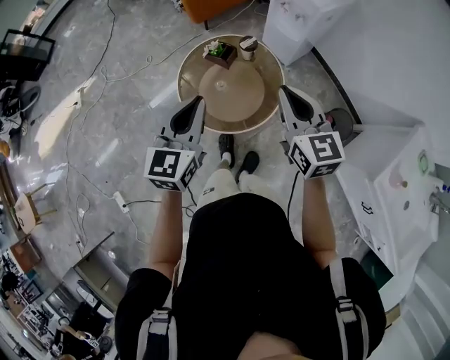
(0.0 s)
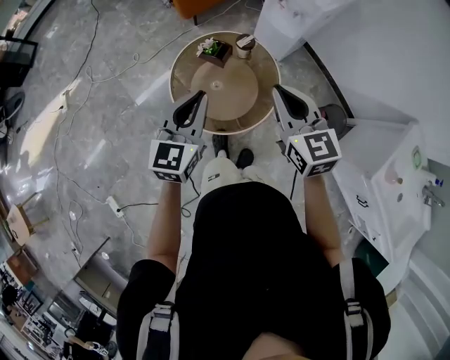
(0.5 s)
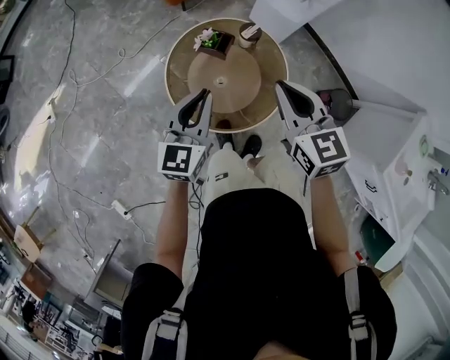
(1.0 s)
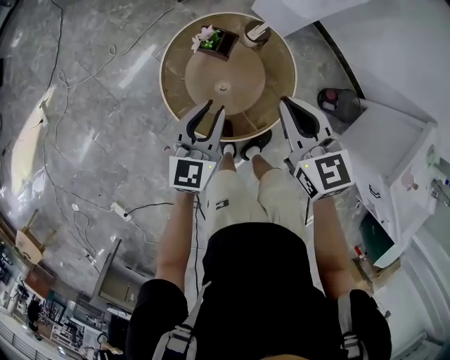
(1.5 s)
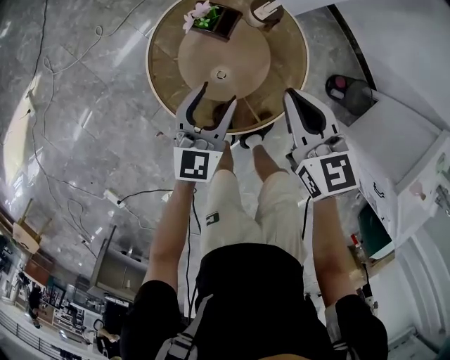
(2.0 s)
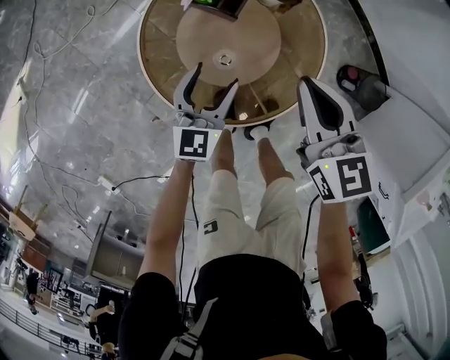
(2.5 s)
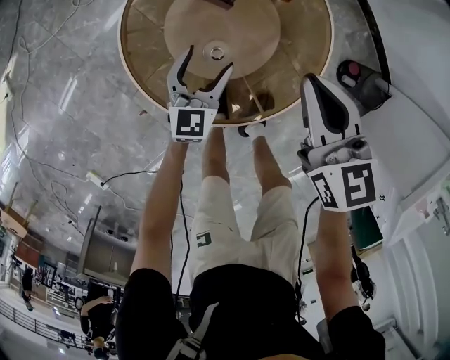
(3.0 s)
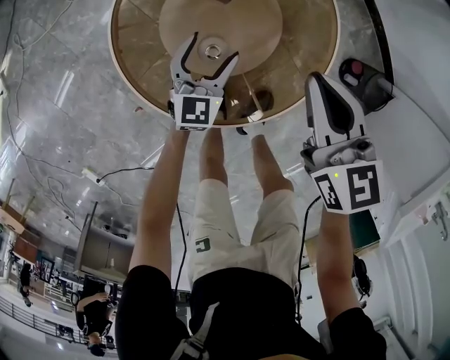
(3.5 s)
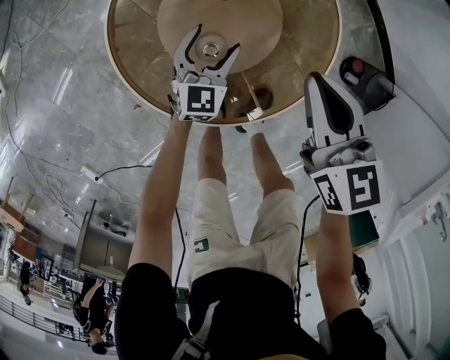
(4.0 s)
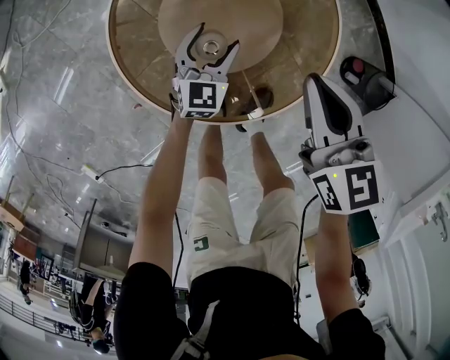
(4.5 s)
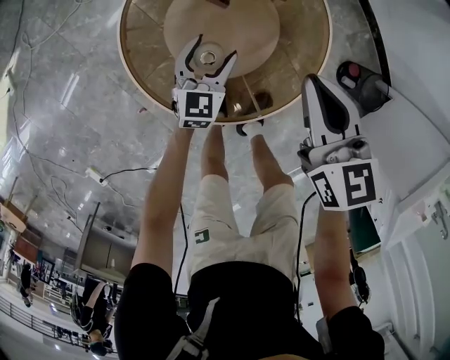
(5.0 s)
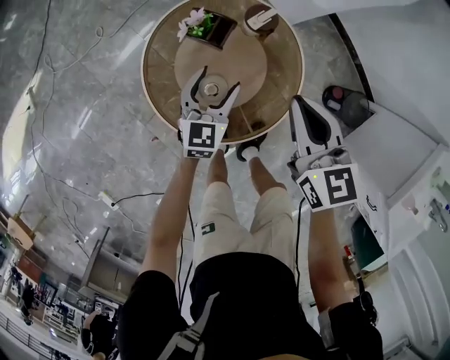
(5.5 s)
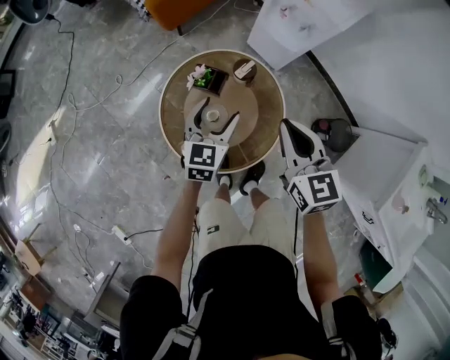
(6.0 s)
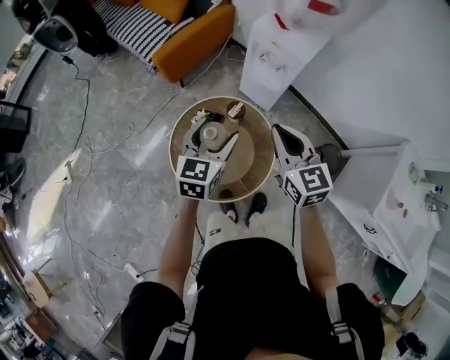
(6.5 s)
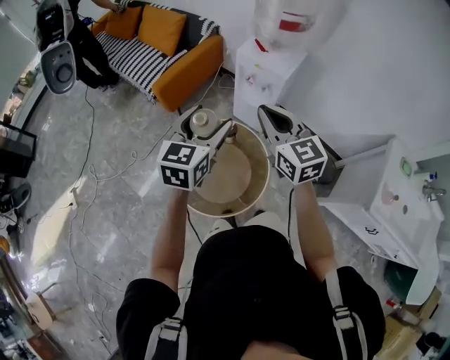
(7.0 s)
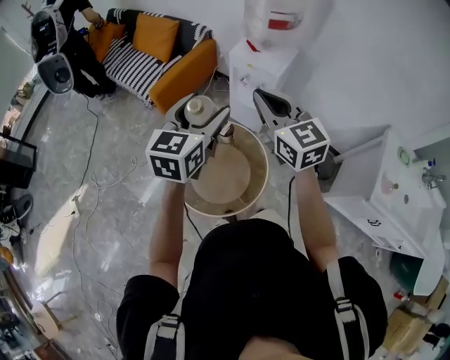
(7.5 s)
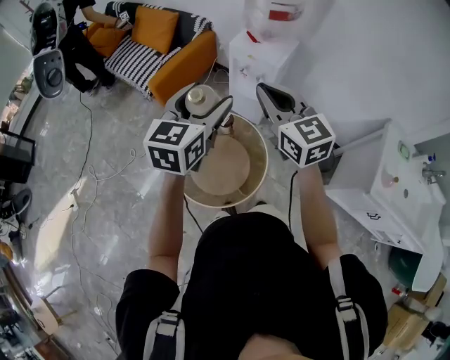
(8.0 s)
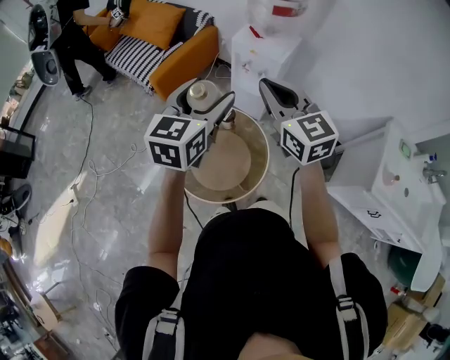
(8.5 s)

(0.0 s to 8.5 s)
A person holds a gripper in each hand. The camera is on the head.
0.0 s - 2.0 s: Both grippers travel together downward and forward, approximately 35 cm. The left gripper opens.
2.0 s - 4.0 s: The right gripper goes about 15 cm downward. The left gripper heads downward, covering roughly 25 cm.
4.0 s - 6.5 s: The two grippers go roughly 50 cm upward. The right gripper turns by roughly 20 degrees.
6.5 s - 8.5 s: The grippers both shift upward by some 20 cm.

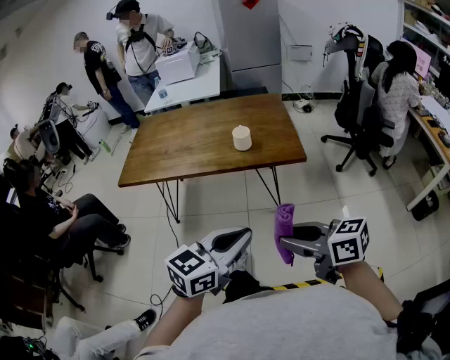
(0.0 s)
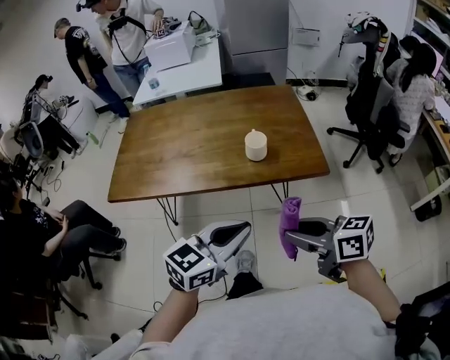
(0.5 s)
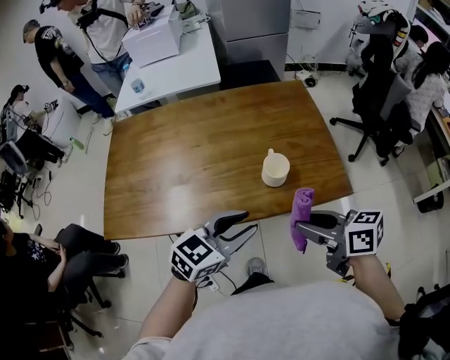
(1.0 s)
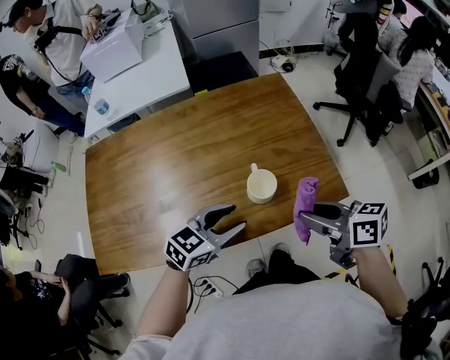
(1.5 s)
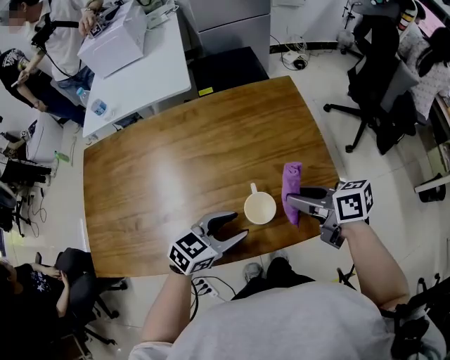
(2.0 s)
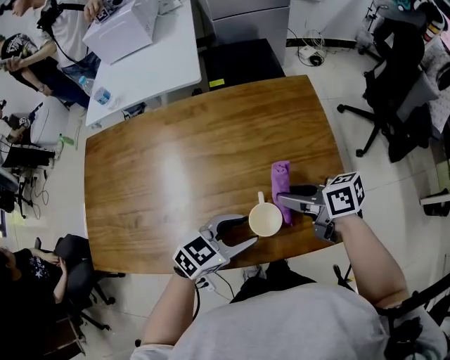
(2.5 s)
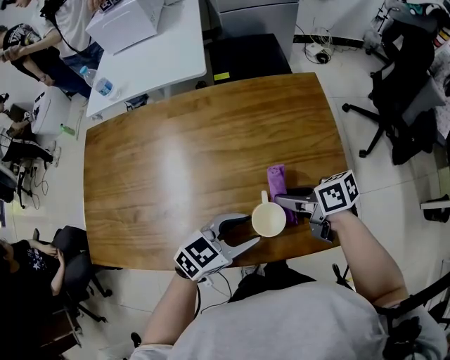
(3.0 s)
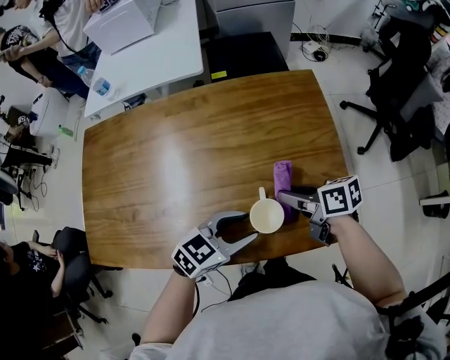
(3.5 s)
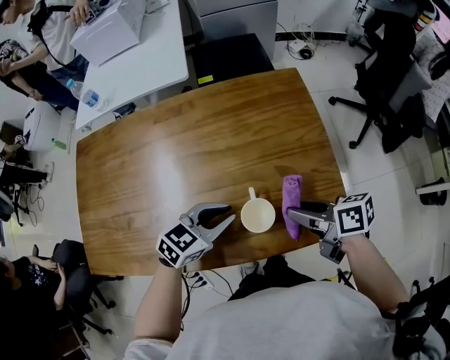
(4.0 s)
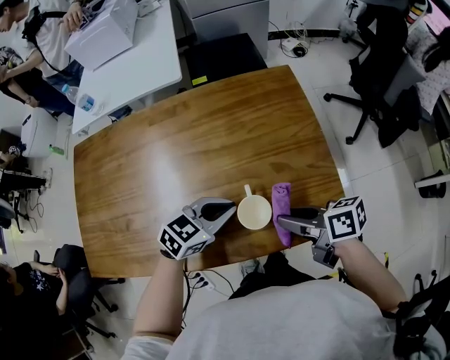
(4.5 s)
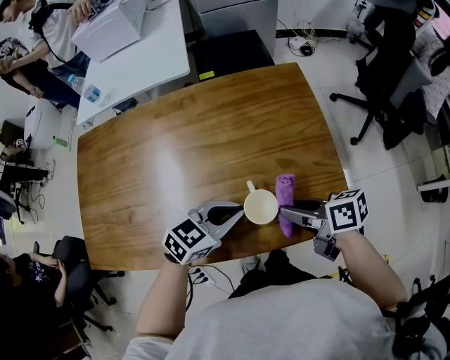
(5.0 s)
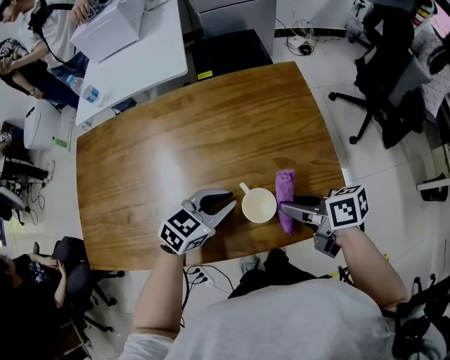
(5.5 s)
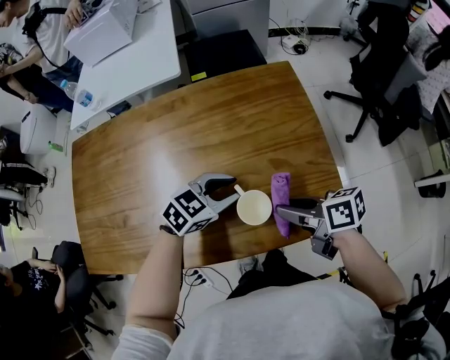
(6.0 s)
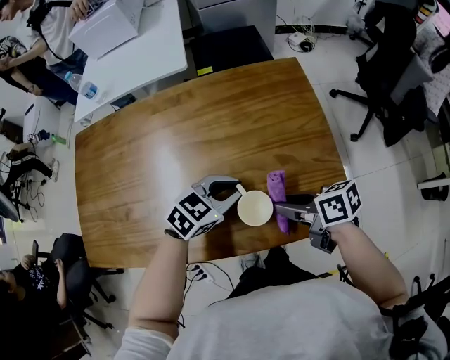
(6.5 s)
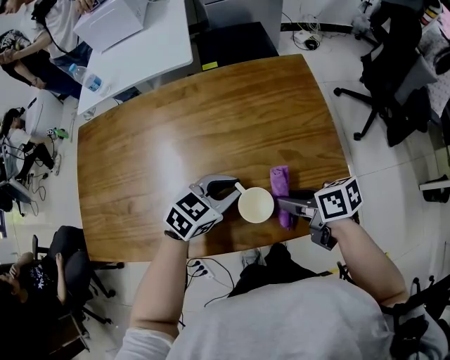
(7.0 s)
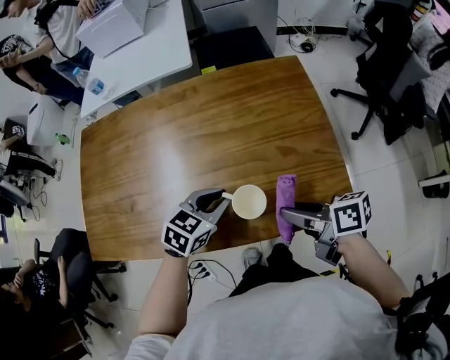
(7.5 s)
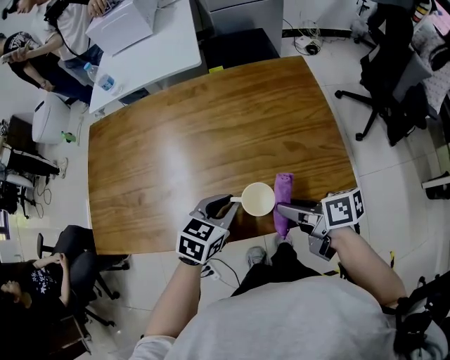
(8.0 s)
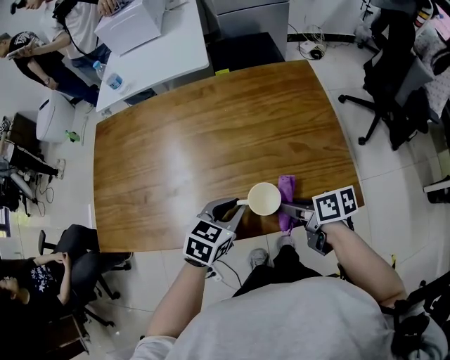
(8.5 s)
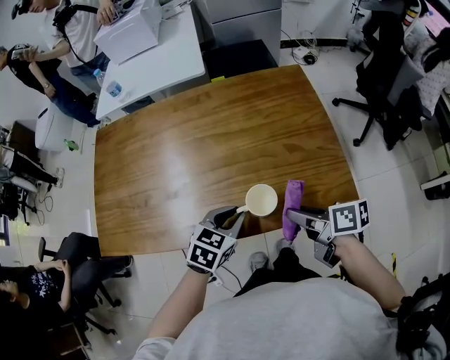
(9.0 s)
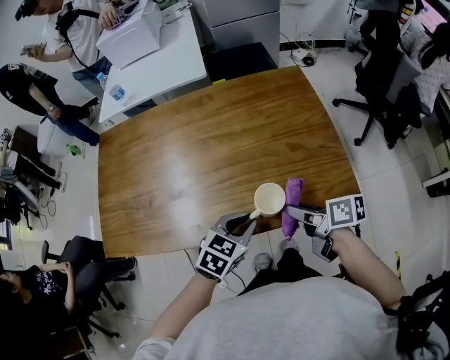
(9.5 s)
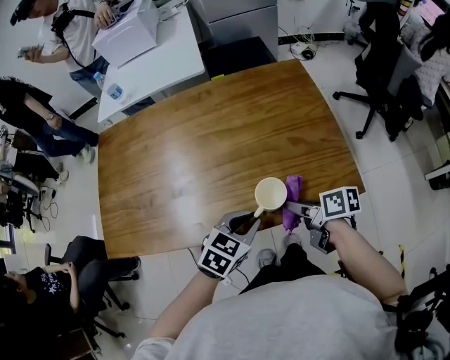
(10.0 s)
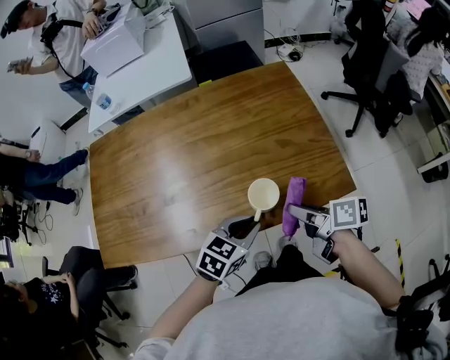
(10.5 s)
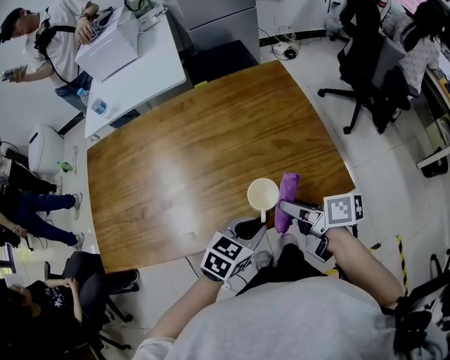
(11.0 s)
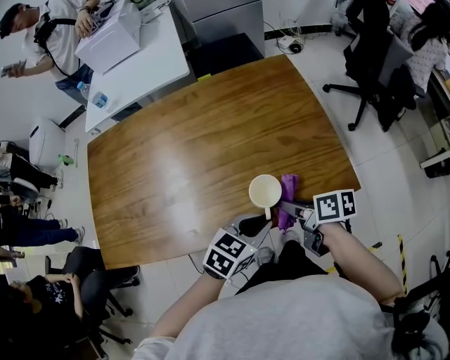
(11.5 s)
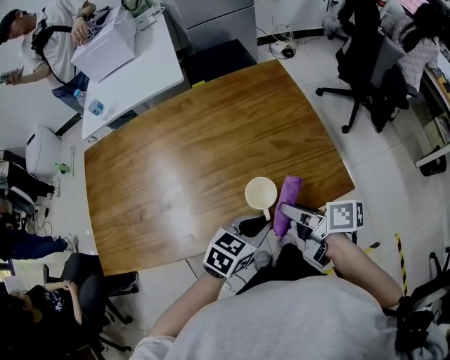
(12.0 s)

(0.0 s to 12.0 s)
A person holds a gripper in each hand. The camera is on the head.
0.0 s - 2.0 s: The pair of grippers is taken about 60 cm. The right gripper changes its angle by about 20 degrees. The left gripper swivels approximately 30 degrees, and opens.
2.0 s - 4.0 s: The left gripper shifts by roughly 5 cm, and closes up.
4.0 s - 6.0 s: The left gripper shifts by some 5 cm.
6.0 s - 8.0 s: The left gripper ends up approximately 10 cm from where it was, and swivels roughly 30 degrees, while the right gripper changes place by some 5 cm.
8.0 s - 10.0 s: The right gripper swings up and down, roughly 5 cm each way, with 2 reversals. The left gripper heads backward, covering some 10 cm.
10.0 s - 12.0 s: The left gripper is displaced to the right by about 5 cm. Meanwhile the right gripper goes up and down, roughly 5 cm each way, reversing 2 times.

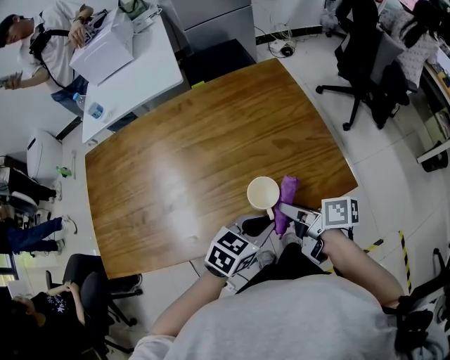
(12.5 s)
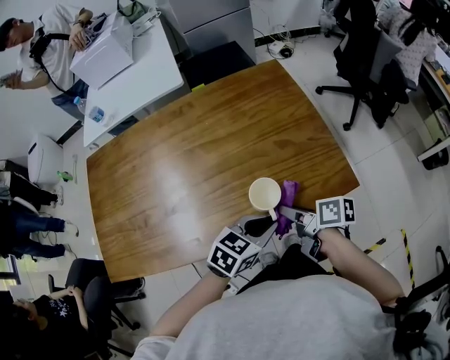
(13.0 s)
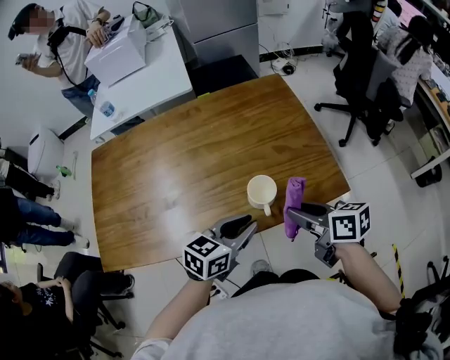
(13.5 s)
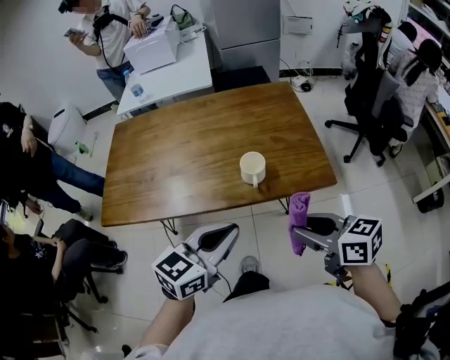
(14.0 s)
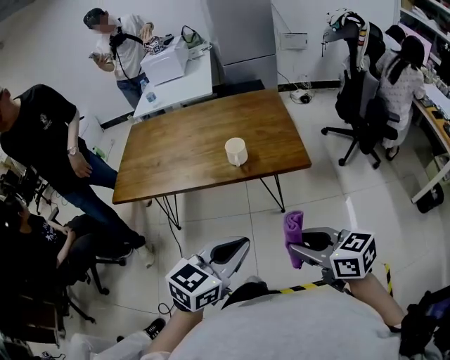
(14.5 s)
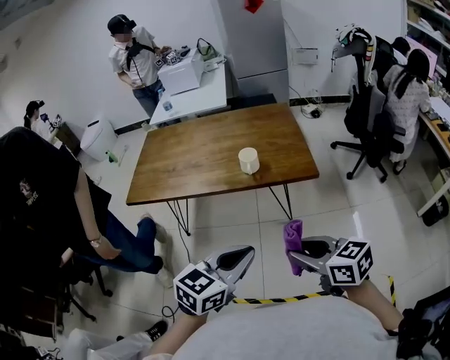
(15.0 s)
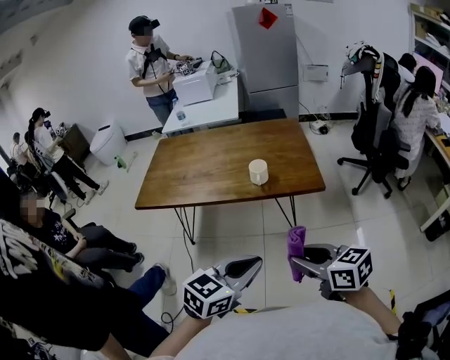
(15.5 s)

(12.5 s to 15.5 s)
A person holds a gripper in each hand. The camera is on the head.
12.5 s - 14.0 s: Both grippers move backward and upward, approximately 25 cm. The left gripper swivels about 30 degrees. The right gripper twists some 50 degrees counterclockwise, seen from behind.
14.0 s - 15.5 s: Both grippers travel together backward, approximately 25 cm.

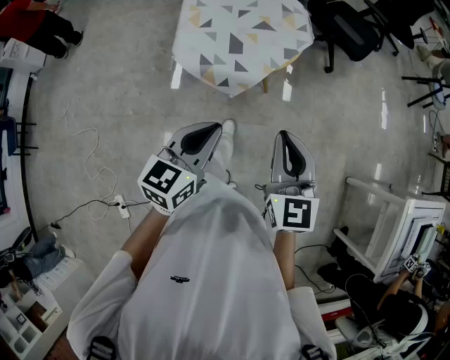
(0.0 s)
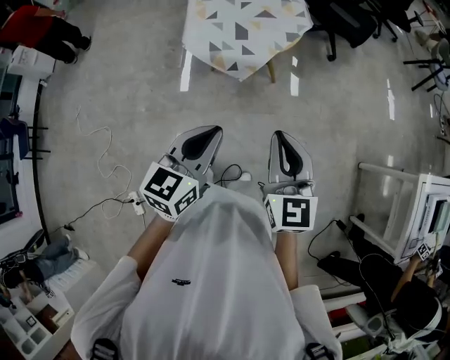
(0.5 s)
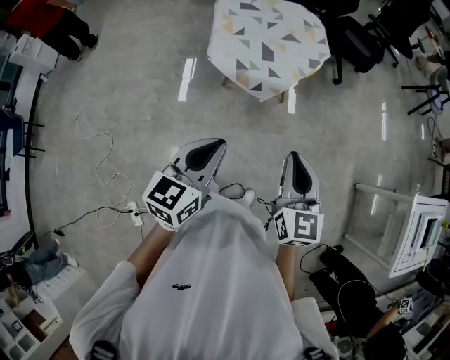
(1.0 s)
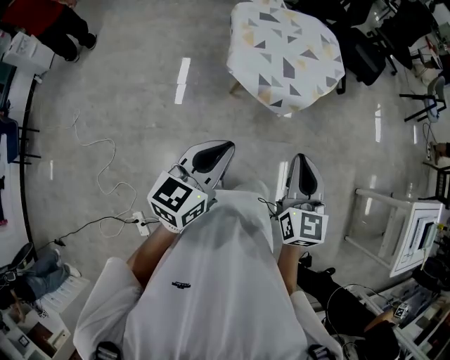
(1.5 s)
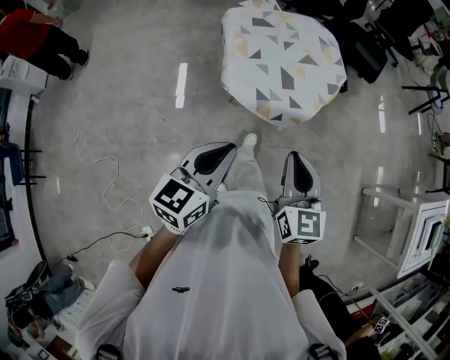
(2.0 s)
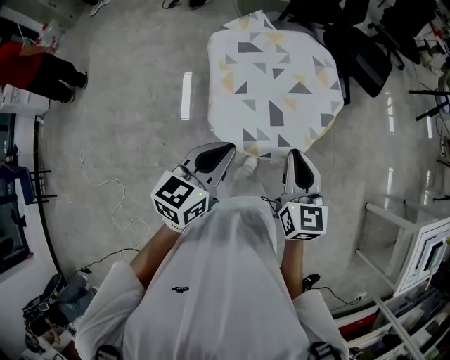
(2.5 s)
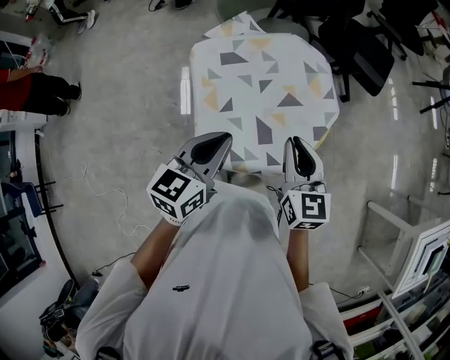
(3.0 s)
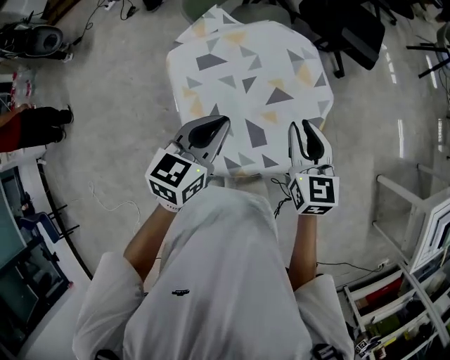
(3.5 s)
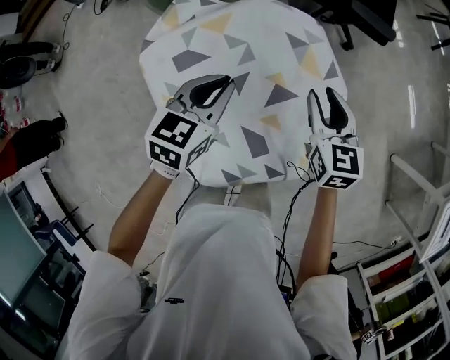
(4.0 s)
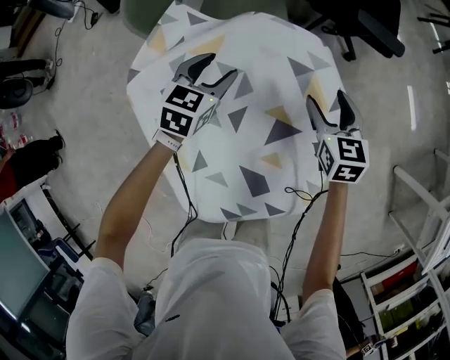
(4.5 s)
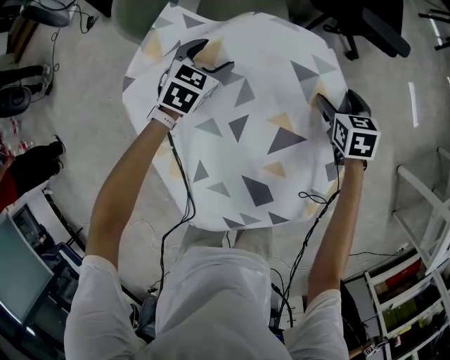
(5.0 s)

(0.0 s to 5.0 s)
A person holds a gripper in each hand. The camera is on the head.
0.0 s - 2.5 s: The right gripper shifts some 30 cm forward and to the left. Meanwhile the left gripper travels to the left and forward by roughly 30 cm.
2.5 s - 5.0 s: The two grippers travel together, forward, some 50 cm. Both grippers travel together downward, about 35 cm. The right gripper tilts its fingers roughly 40 degrees downward, and opens up. Meanwhile the left gripper tips its fingers downward by some 30 degrees, and opens its fingers.
